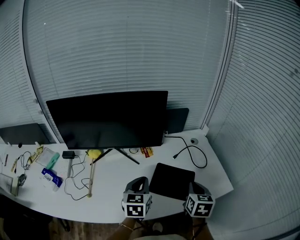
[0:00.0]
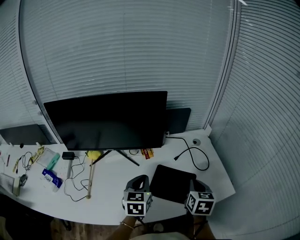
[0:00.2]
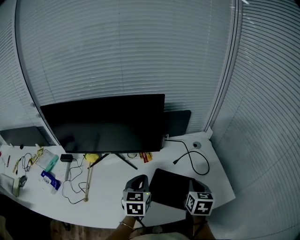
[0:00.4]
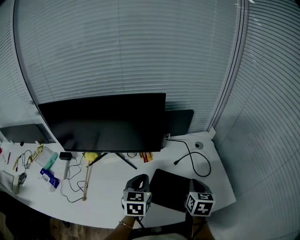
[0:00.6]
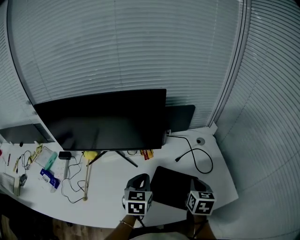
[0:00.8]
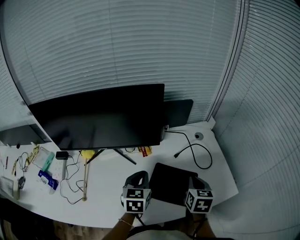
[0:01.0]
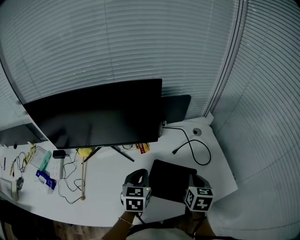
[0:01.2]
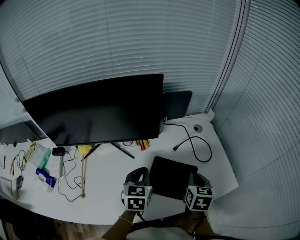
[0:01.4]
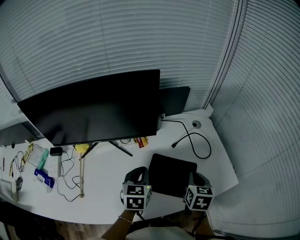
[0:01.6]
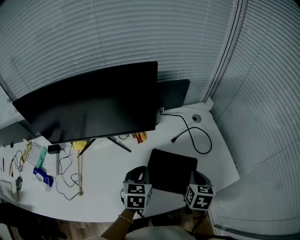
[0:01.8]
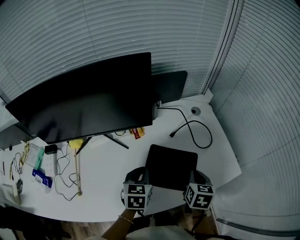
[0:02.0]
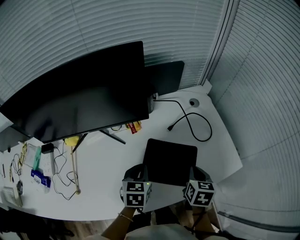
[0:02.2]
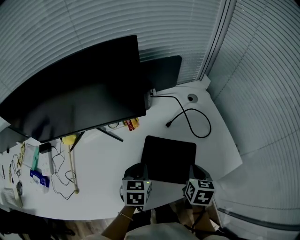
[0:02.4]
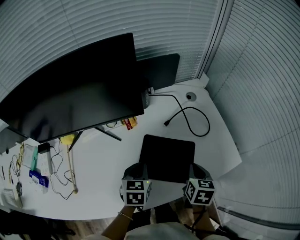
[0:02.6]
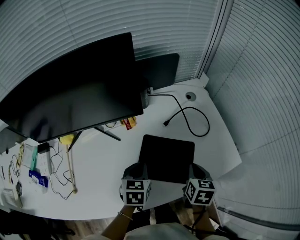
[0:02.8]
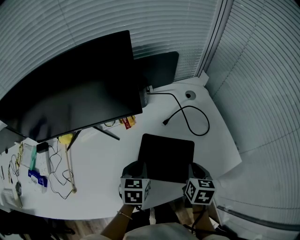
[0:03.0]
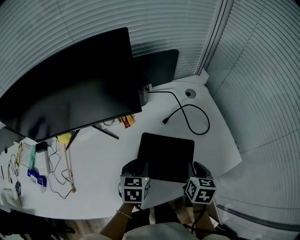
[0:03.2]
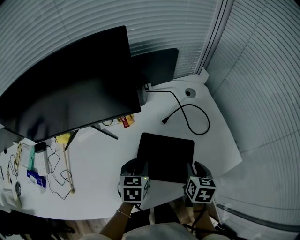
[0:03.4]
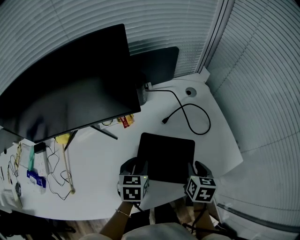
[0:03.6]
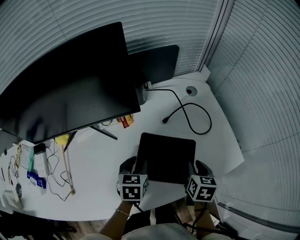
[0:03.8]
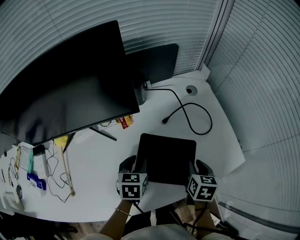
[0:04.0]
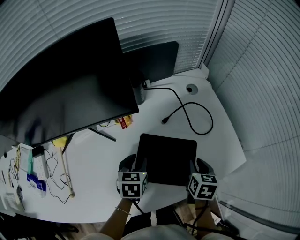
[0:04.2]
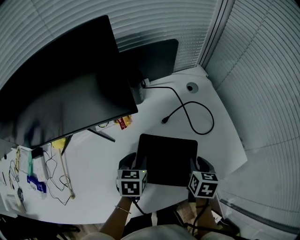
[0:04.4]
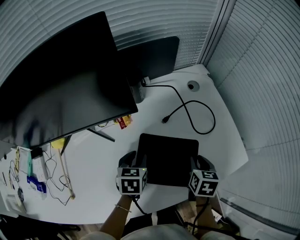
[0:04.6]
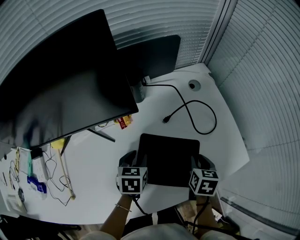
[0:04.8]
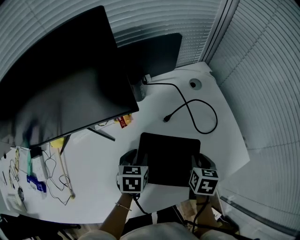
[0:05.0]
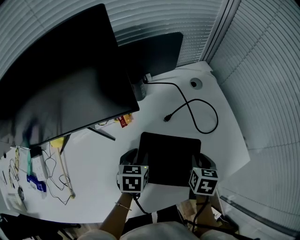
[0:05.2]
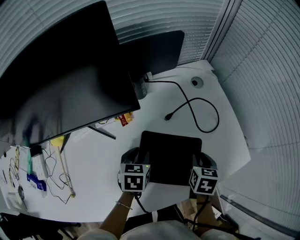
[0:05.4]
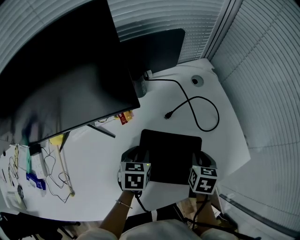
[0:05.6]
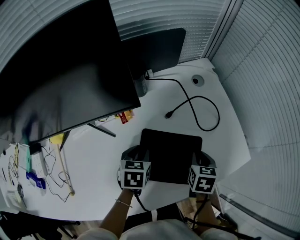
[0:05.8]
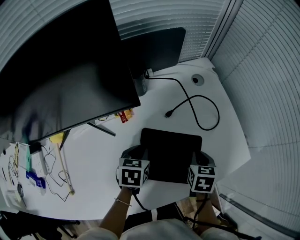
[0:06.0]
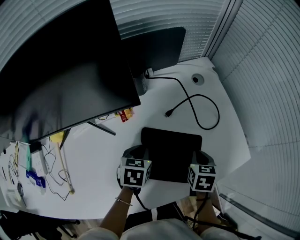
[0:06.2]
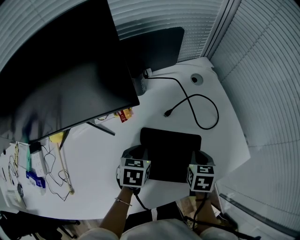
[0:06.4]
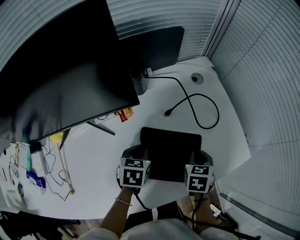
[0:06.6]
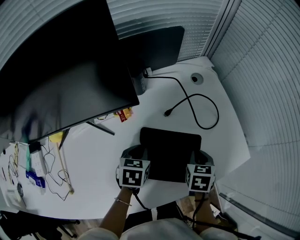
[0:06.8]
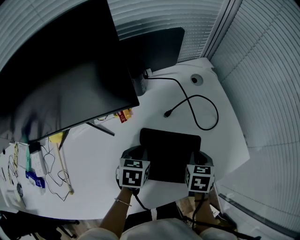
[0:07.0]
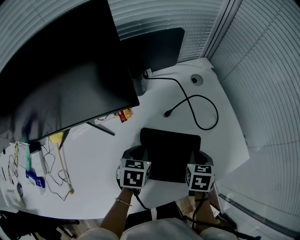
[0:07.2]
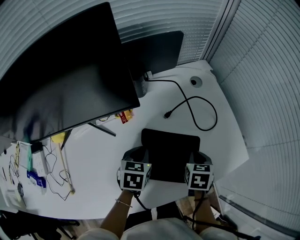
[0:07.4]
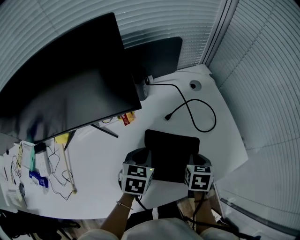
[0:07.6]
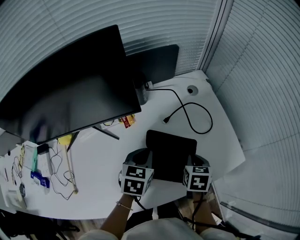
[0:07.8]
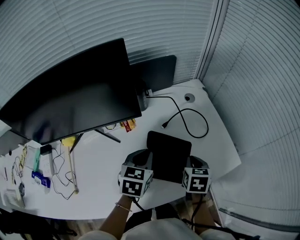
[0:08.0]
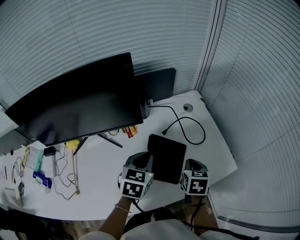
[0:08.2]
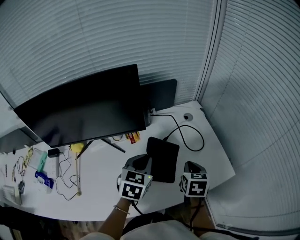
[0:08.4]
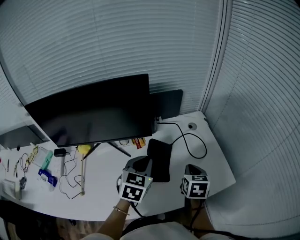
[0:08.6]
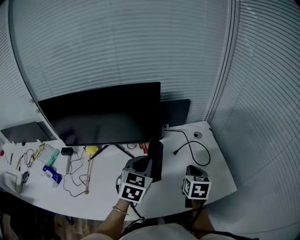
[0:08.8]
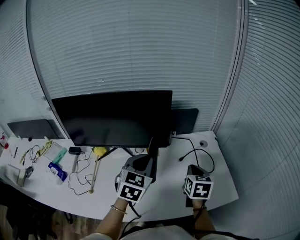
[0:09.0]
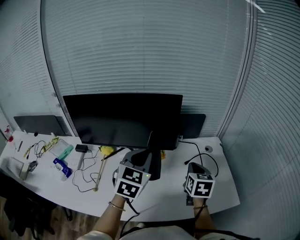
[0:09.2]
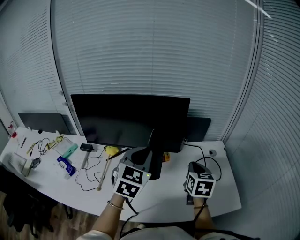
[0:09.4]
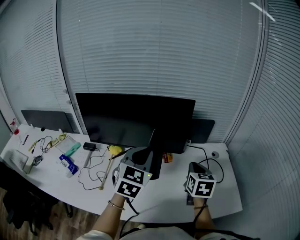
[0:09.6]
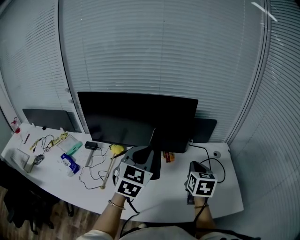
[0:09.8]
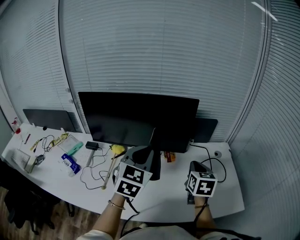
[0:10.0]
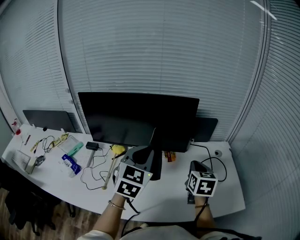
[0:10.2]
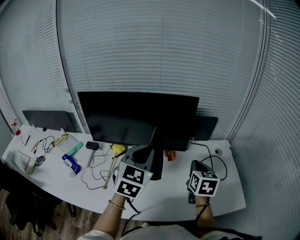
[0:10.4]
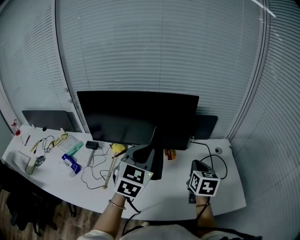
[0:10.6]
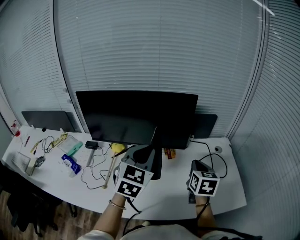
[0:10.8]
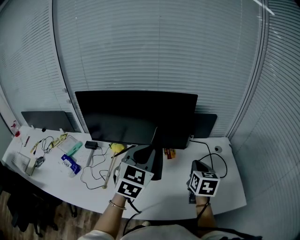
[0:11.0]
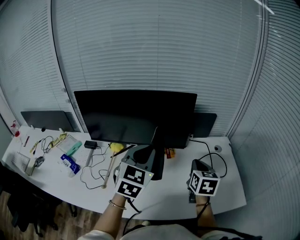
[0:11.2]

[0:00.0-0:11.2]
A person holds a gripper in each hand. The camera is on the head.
0:00.0 to 0:01.6: The grippers both shift forward and downward by some 10 cm.
0:01.6 to 0:03.2: Both grippers travel together downward, about 10 cm. The left gripper opens up.
0:03.2 to 0:04.8: The right gripper travels downward by approximately 5 cm. Meanwhile the left gripper ends up about 5 cm from where it was.
0:04.8 to 0:06.4: The left gripper closes its fingers. Meanwhile the right gripper closes its fingers.
0:06.4 to 0:08.0: The right gripper heads upward, covering roughly 5 cm; the left gripper moves upward, about 10 cm.
0:08.0 to 0:09.6: The two grippers go roughly 25 cm upward and to the left. The right gripper rotates approximately 30 degrees. The left gripper rotates approximately 40 degrees.
0:09.6 to 0:11.2: The two grippers keep their place.

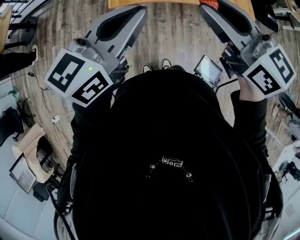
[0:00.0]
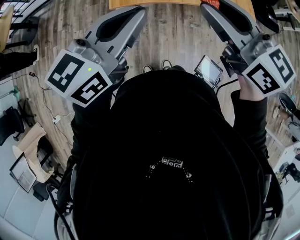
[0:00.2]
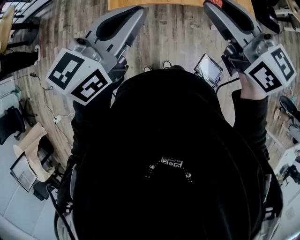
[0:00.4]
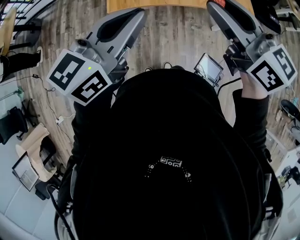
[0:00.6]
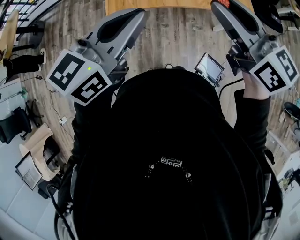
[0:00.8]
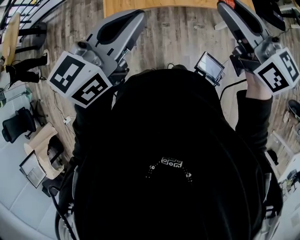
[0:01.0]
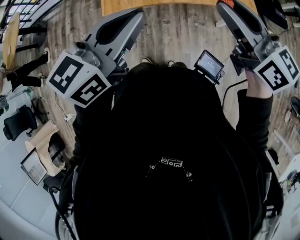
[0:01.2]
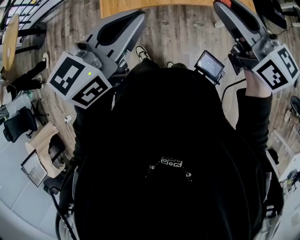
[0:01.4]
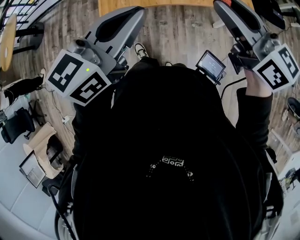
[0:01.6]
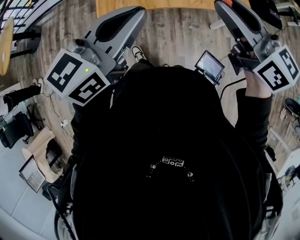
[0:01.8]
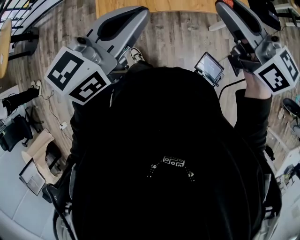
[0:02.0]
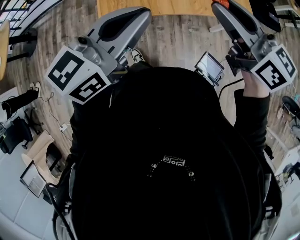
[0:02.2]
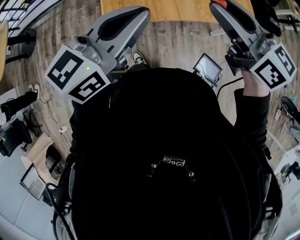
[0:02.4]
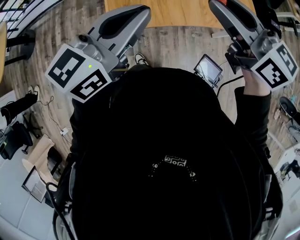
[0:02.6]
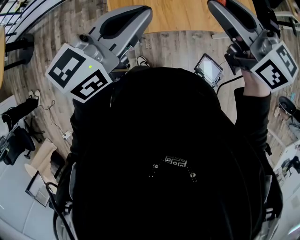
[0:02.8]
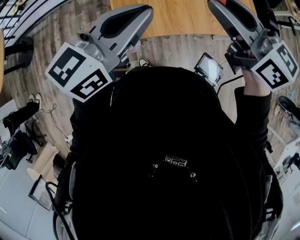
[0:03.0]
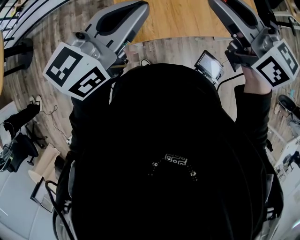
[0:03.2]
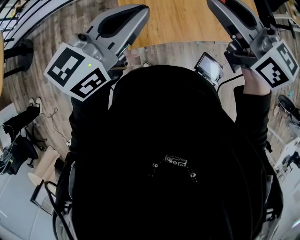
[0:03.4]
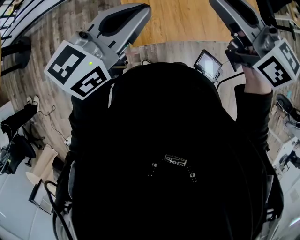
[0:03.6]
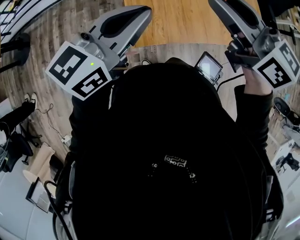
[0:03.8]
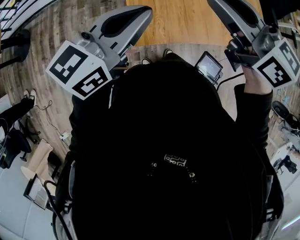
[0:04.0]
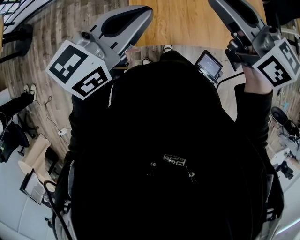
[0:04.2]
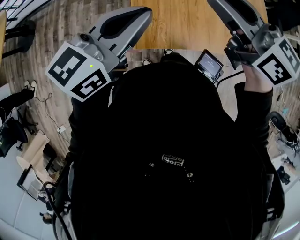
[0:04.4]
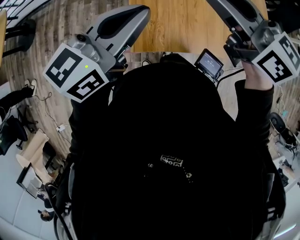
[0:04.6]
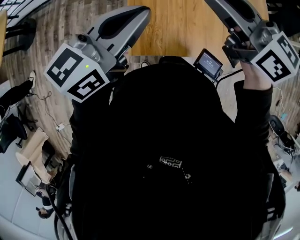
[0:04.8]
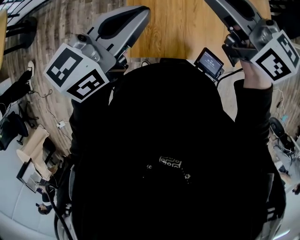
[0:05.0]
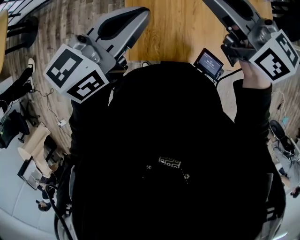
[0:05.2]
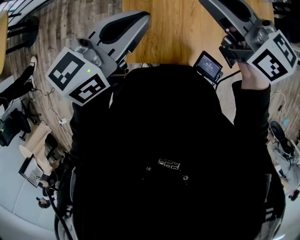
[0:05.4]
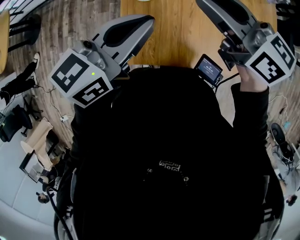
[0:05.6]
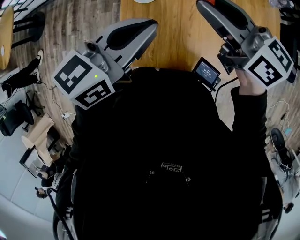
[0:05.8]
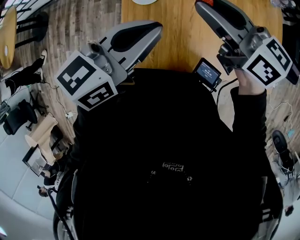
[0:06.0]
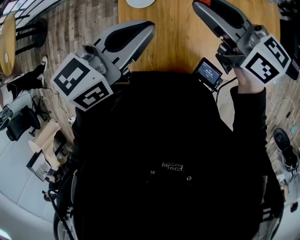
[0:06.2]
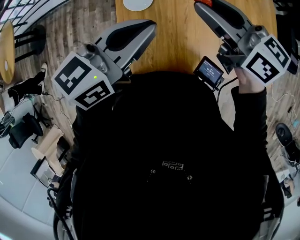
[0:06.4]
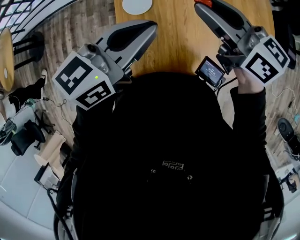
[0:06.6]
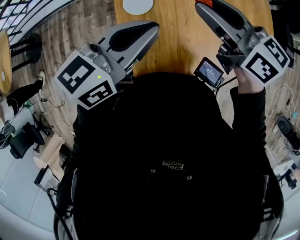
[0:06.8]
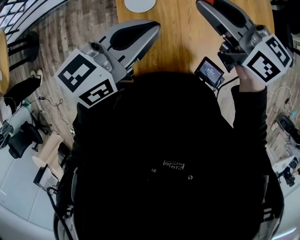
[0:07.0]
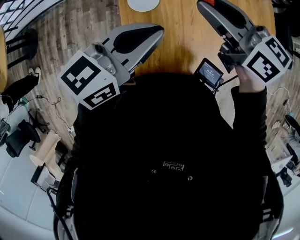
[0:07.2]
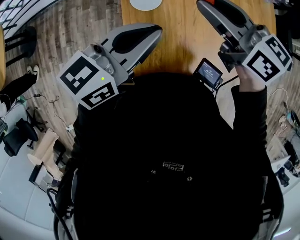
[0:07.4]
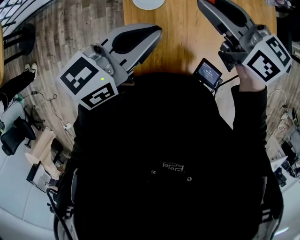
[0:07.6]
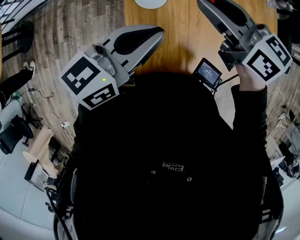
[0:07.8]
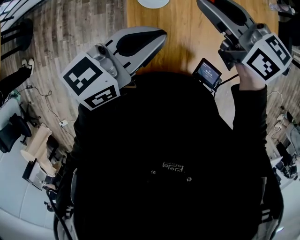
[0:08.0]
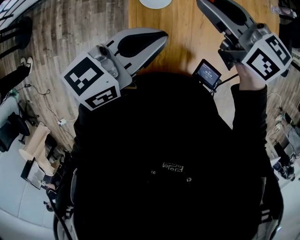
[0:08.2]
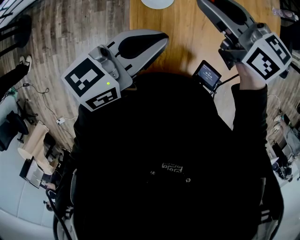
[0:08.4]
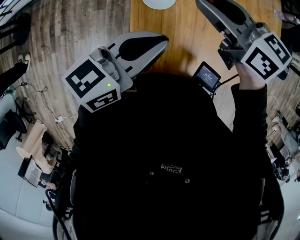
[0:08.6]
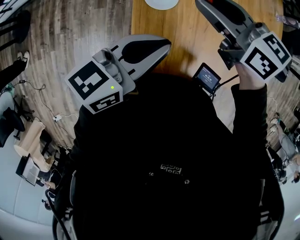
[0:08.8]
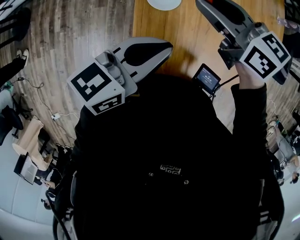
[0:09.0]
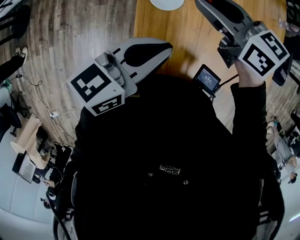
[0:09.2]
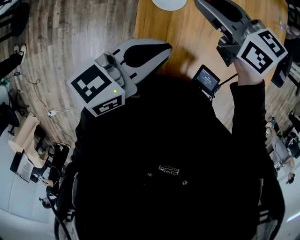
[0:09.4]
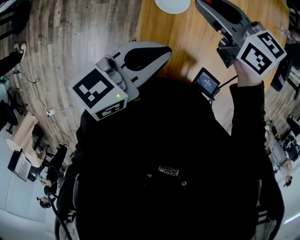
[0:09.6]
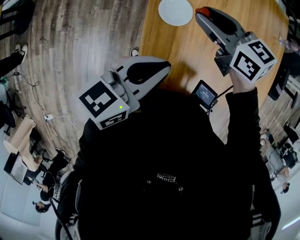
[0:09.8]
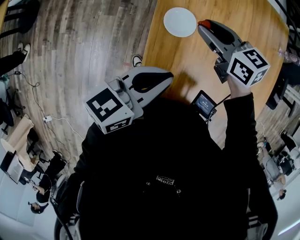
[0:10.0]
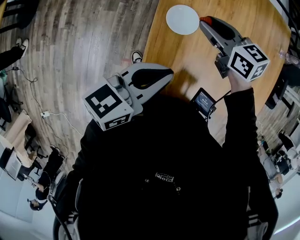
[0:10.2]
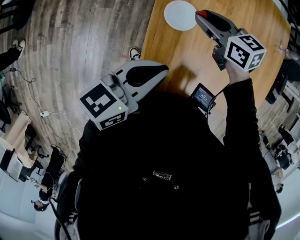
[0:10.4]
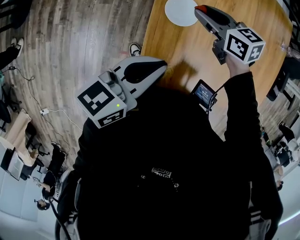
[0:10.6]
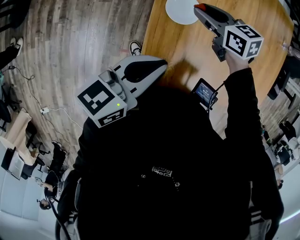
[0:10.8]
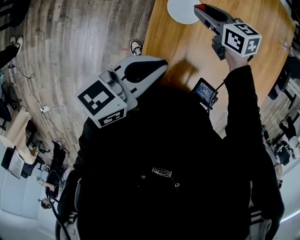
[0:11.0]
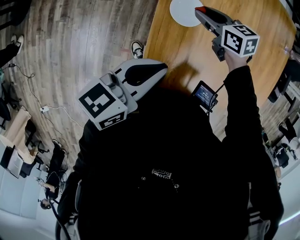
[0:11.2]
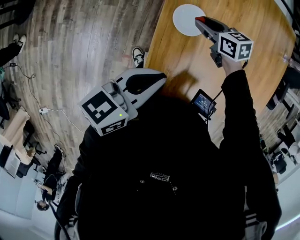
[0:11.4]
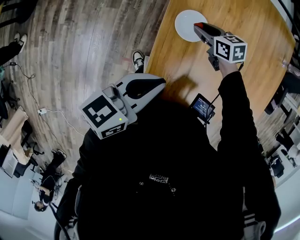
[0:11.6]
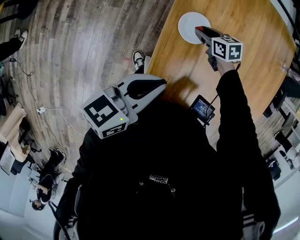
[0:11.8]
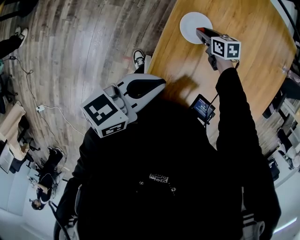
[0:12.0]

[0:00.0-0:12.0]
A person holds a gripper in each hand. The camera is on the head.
0:00.0 to 0:01.6: The two grippers go about 10 cm to the right and forward.
0:01.6 to 0:03.0: The grippers both shift to the left and forward by some 20 cm.
0:03.0 to 0:04.4: The right gripper goes about 10 cm forward and to the left. The left gripper goes roughly 5 cm to the left.
0:04.4 to 0:06.0: The left gripper goes about 15 cm forward and to the right, while the right gripper heads forward, downward and to the right, covering some 15 cm.
0:06.0 to 0:07.6: The left gripper shifts by some 5 cm.
0:07.6 to 0:09.0: The right gripper heads to the left and downward, covering roughly 5 cm.
0:09.0 to 0:10.4: The right gripper is displaced downward by approximately 10 cm.
0:10.4 to 0:12.0: The left gripper shifts by about 5 cm. Meanwhile the right gripper is displaced downward by roughly 20 cm, and swivels roughly 20 degrees.

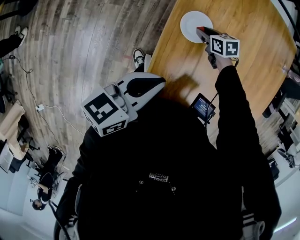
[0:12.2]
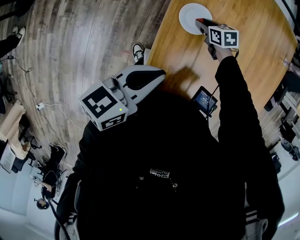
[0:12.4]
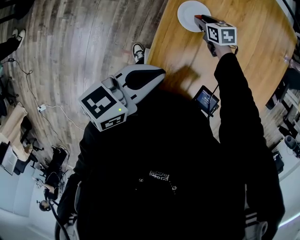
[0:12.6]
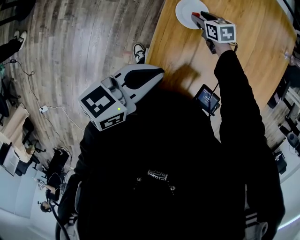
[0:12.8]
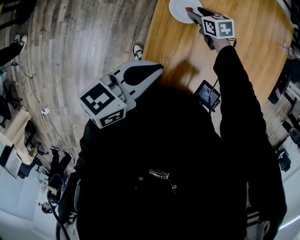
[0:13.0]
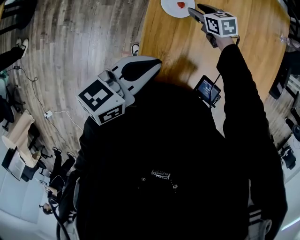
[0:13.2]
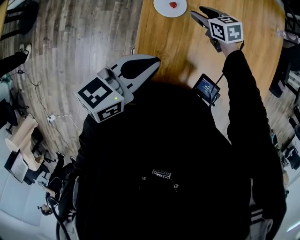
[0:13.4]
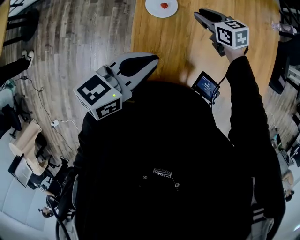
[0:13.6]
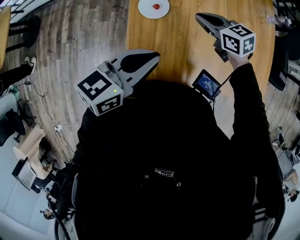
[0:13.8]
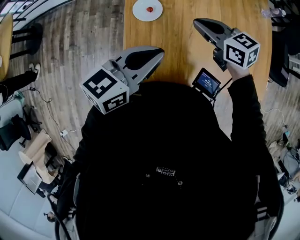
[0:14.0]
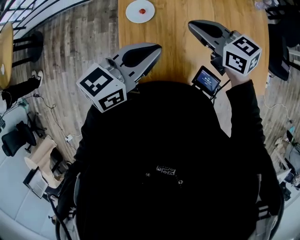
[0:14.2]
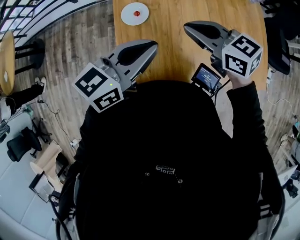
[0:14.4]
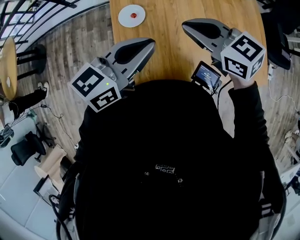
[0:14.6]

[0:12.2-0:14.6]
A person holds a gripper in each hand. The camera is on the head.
0:12.2 to 0:13.4: The right gripper heads upward, covering roughly 5 cm, while the left gripper changes place by about 5 cm.
0:13.4 to 0:14.6: The right gripper goes approximately 25 cm upward and backward, changes its angle by approximately 30 degrees, and closes. Meanwhile the left gripper is displaced to the right by roughly 10 cm.
